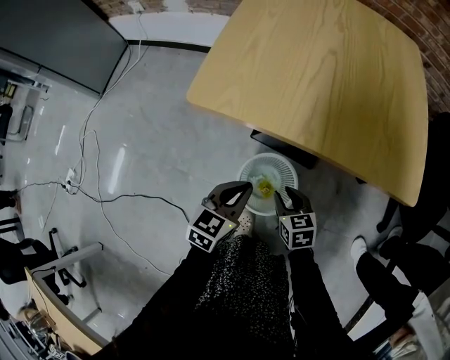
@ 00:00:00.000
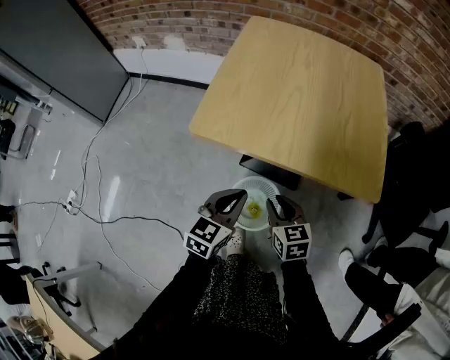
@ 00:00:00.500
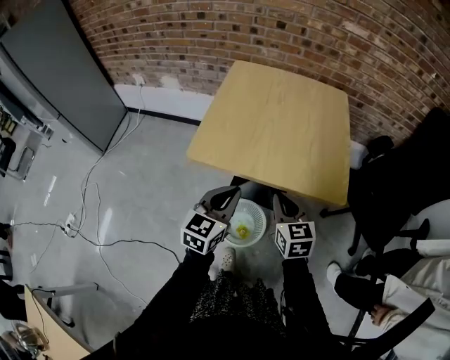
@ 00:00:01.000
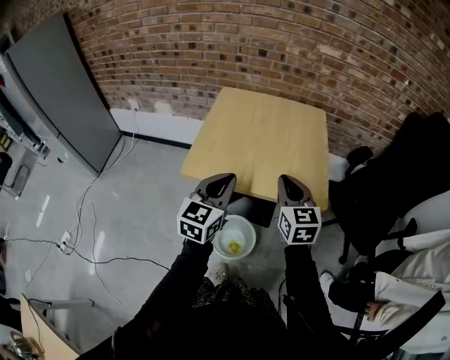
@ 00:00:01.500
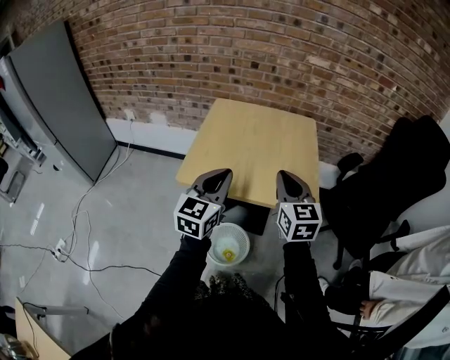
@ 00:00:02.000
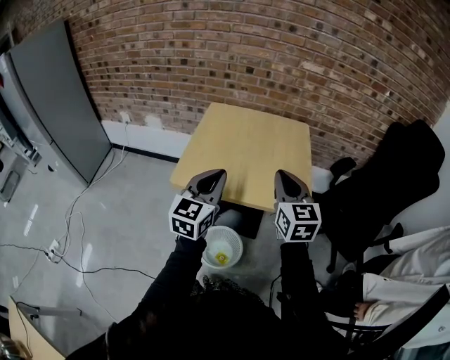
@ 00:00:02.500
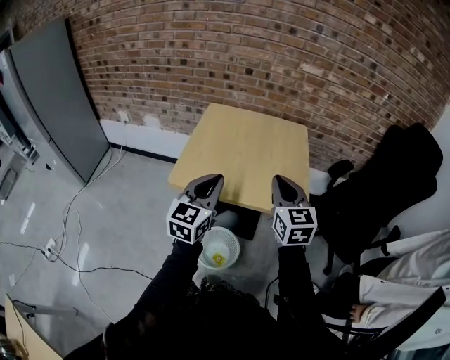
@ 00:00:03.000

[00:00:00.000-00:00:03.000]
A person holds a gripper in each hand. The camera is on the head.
00:00:00.000 to 00:00:01.500: Both grippers move upward, about 40 cm. The left gripper changes its angle by roughly 20 degrees; the right gripper angles its fingers upward, by about 30 degrees.
00:00:01.500 to 00:00:03.000: The right gripper is displaced upward by approximately 5 cm.

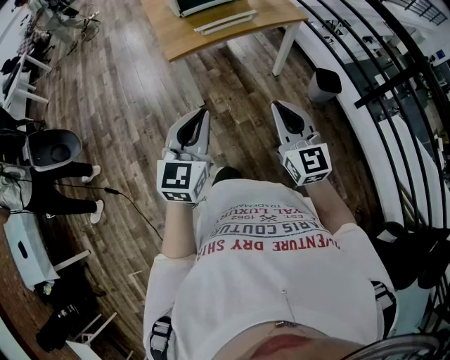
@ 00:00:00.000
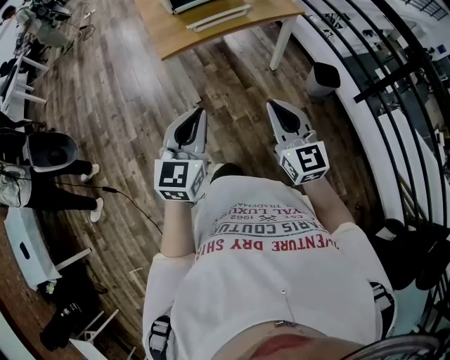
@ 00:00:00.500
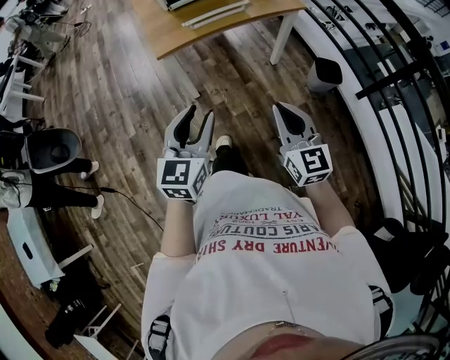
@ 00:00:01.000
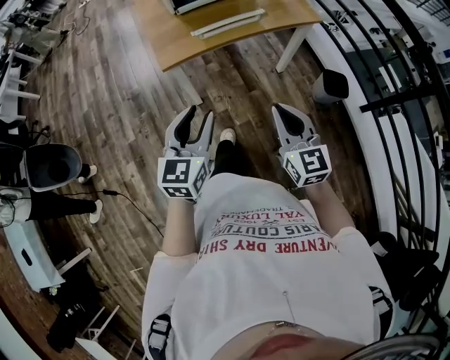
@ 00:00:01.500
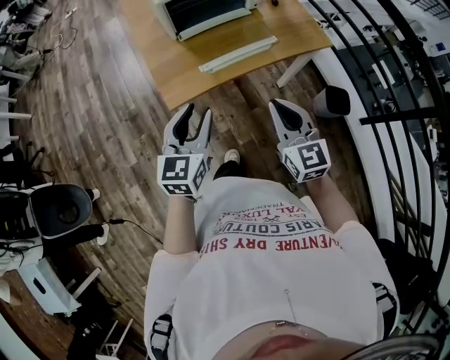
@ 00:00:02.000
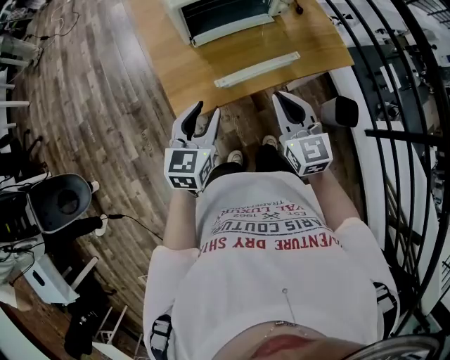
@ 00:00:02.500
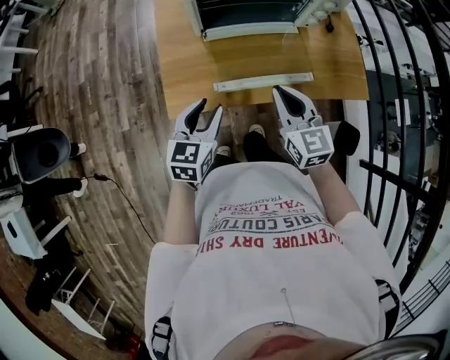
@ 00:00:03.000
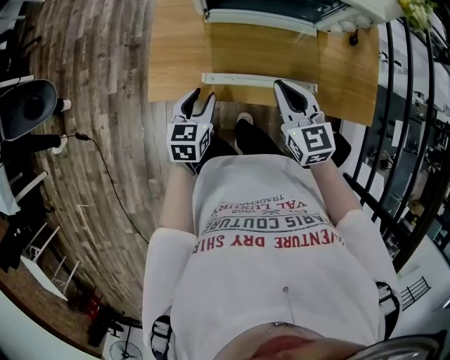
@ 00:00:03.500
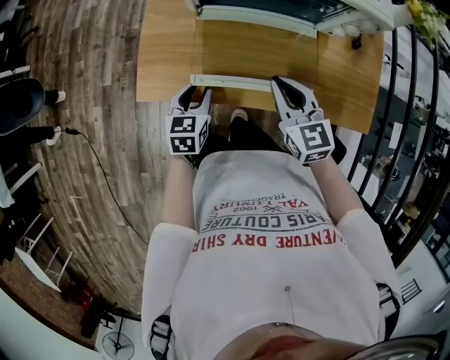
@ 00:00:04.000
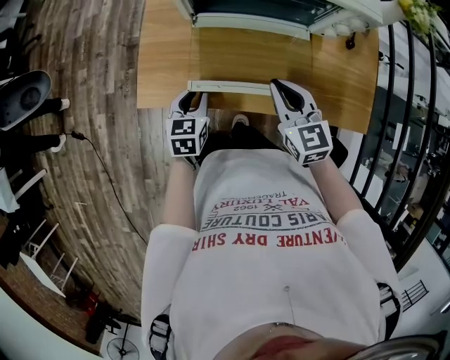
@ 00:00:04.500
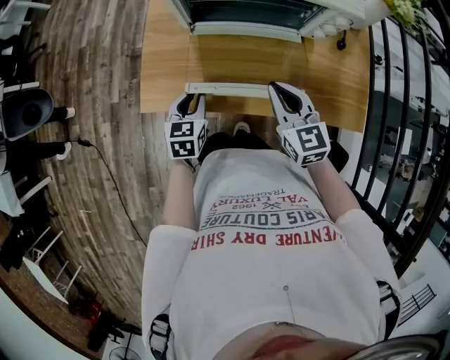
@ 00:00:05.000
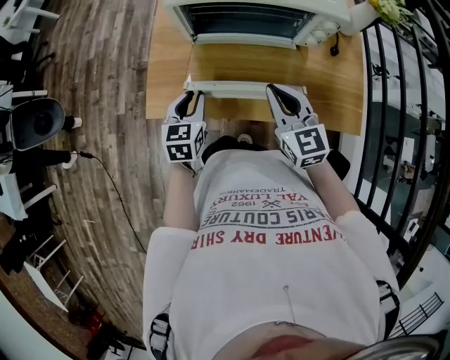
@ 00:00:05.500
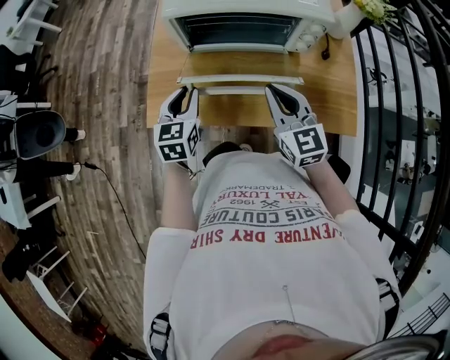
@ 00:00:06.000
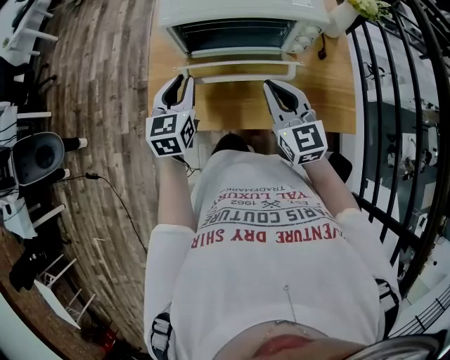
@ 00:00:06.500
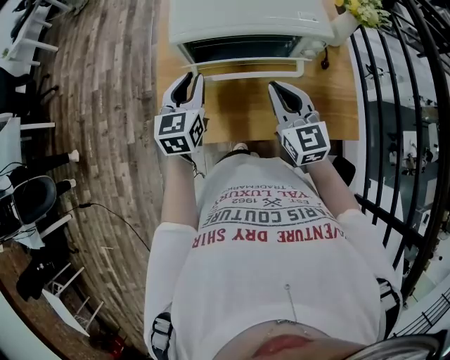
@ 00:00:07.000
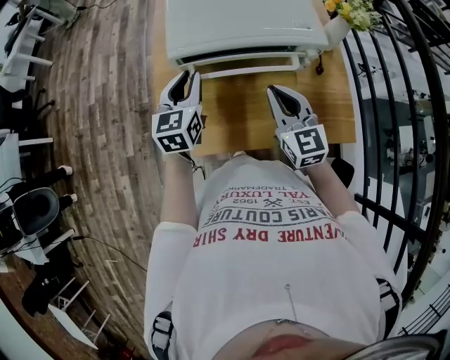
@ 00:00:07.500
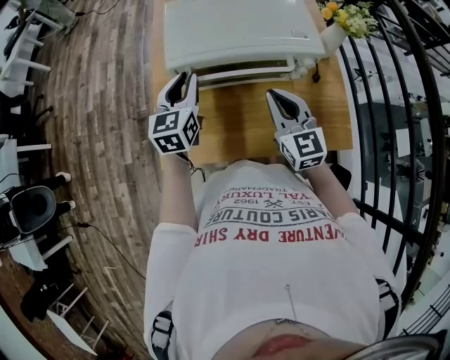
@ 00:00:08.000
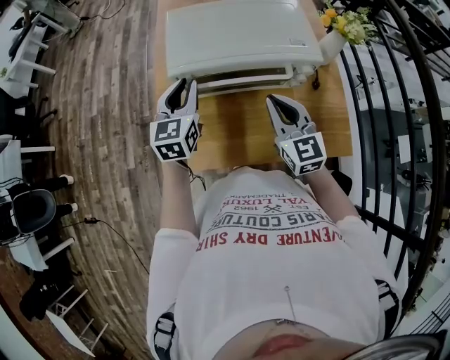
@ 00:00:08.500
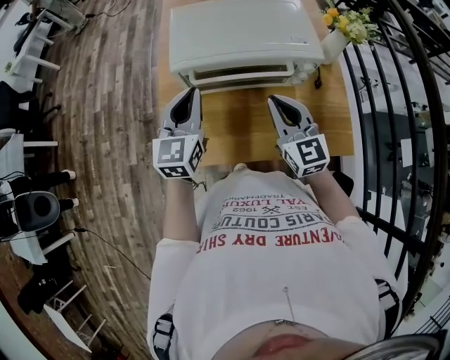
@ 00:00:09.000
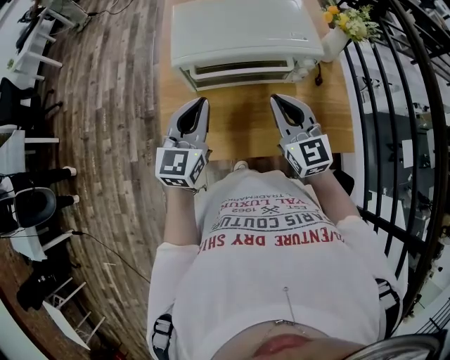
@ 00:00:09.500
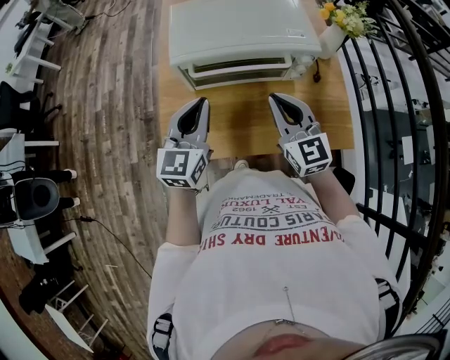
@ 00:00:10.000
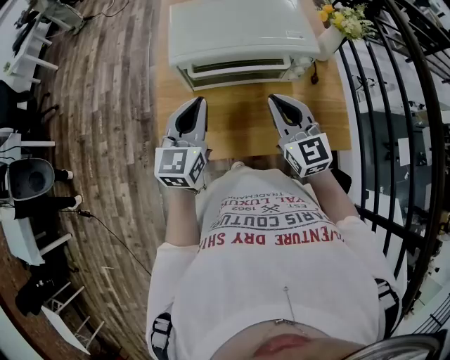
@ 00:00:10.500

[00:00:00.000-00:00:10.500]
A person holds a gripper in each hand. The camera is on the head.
00:00:00.000 to 00:00:02.000: Both grippers travel together forward, roughly 35 cm. The left gripper opens its fingers.
00:00:02.000 to 00:00:04.000: The left gripper shifts roughly 25 cm downward, and turns by about 40 degrees. Meanwhile the right gripper moves approximately 30 cm, and changes its angle by some 40 degrees.
00:00:04.000 to 00:00:06.500: The right gripper moves upward, about 10 cm. The left gripper is displaced upward and forward by approximately 20 cm.
00:00:06.500 to 00:00:08.500: The left gripper heads forward and upward, covering about 10 cm, while the right gripper goes roughly 5 cm forward.
00:00:08.500 to 00:00:10.500: The left gripper goes about 10 cm backward.

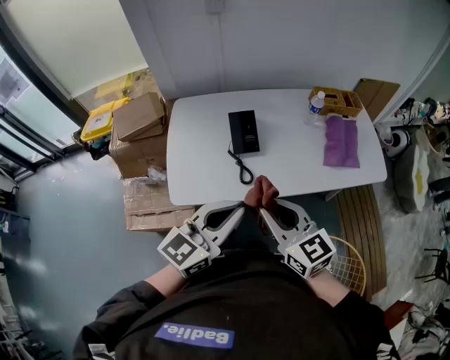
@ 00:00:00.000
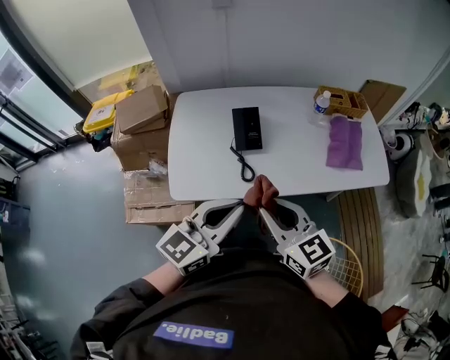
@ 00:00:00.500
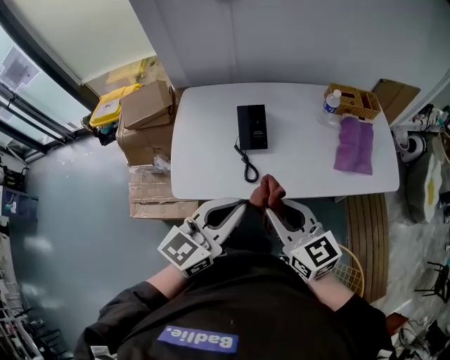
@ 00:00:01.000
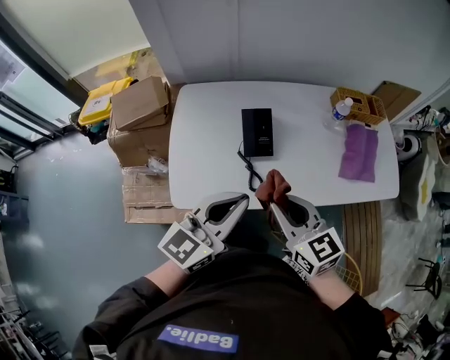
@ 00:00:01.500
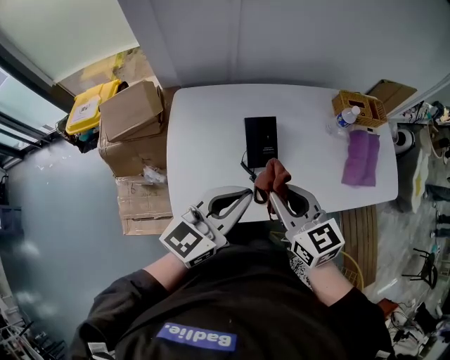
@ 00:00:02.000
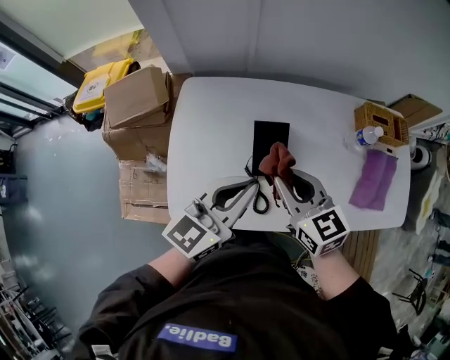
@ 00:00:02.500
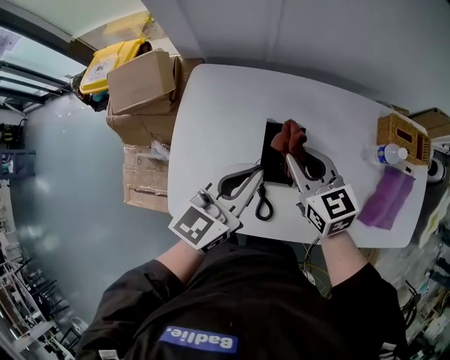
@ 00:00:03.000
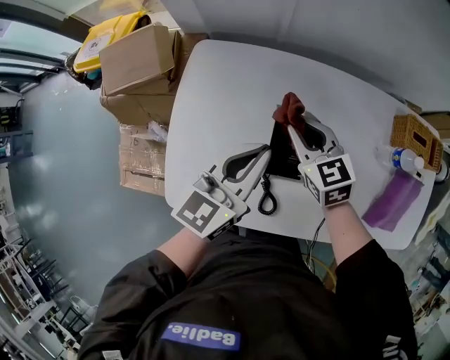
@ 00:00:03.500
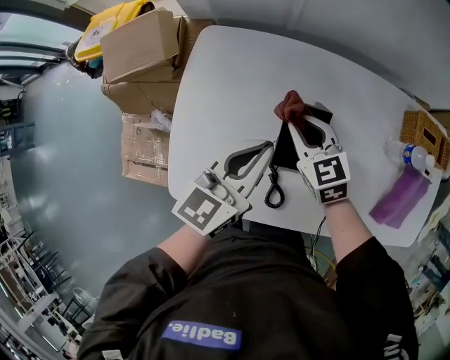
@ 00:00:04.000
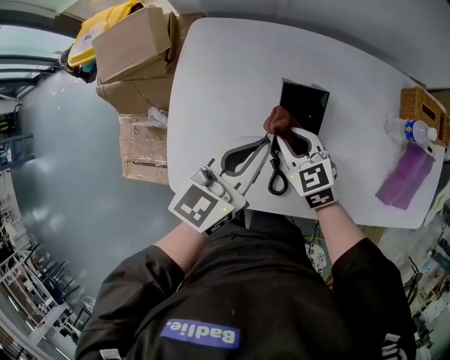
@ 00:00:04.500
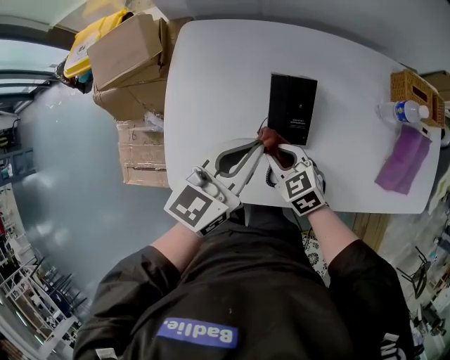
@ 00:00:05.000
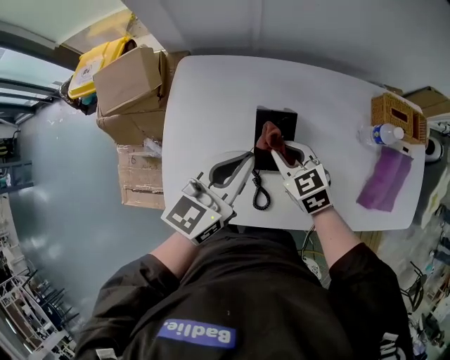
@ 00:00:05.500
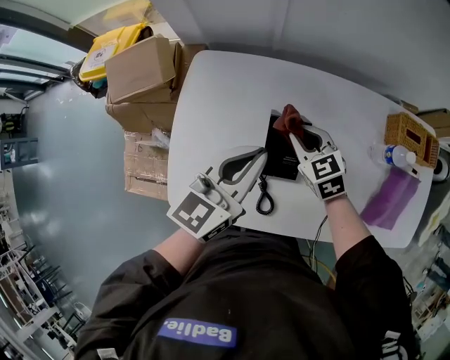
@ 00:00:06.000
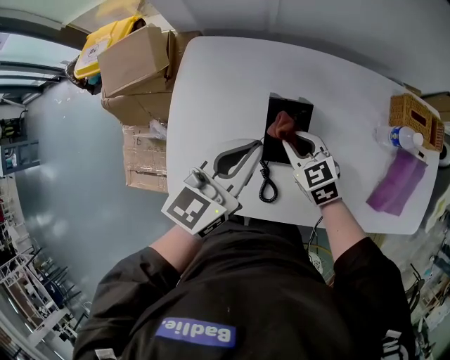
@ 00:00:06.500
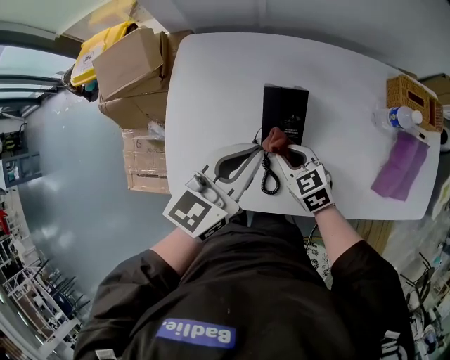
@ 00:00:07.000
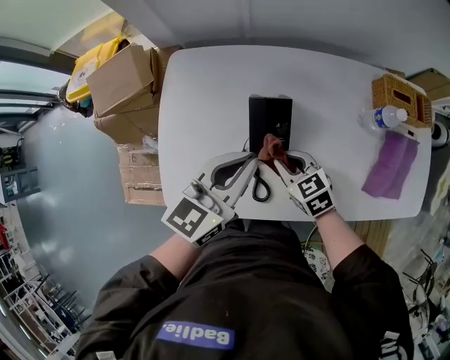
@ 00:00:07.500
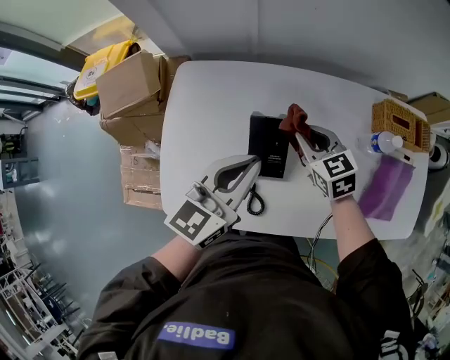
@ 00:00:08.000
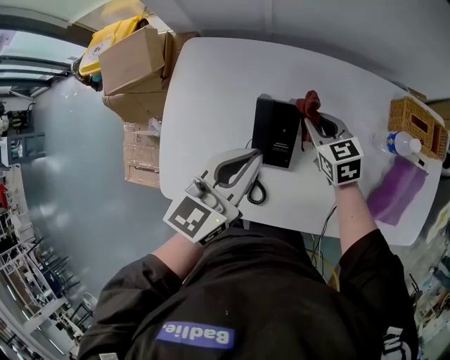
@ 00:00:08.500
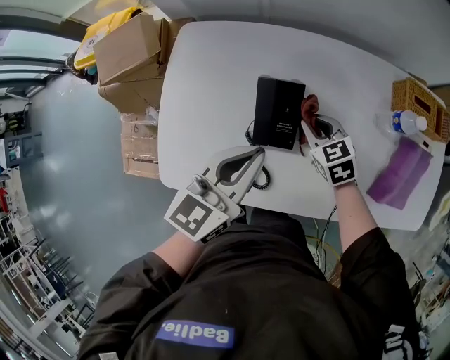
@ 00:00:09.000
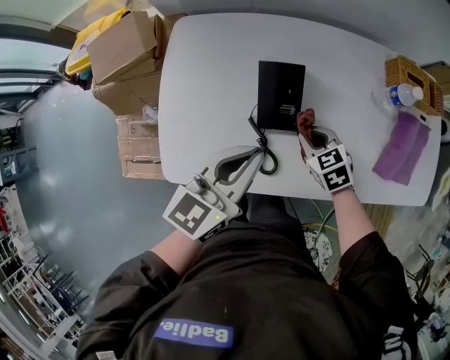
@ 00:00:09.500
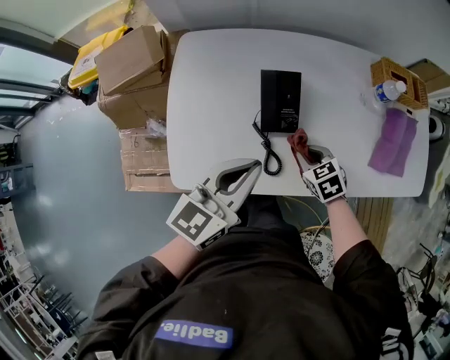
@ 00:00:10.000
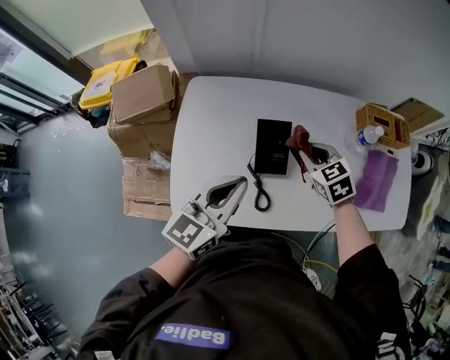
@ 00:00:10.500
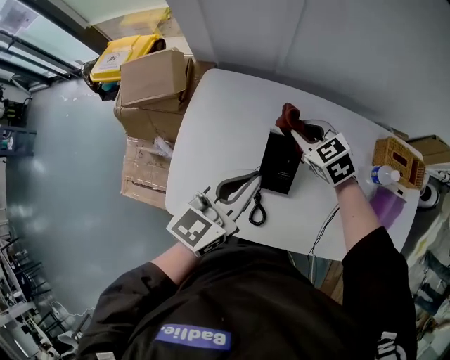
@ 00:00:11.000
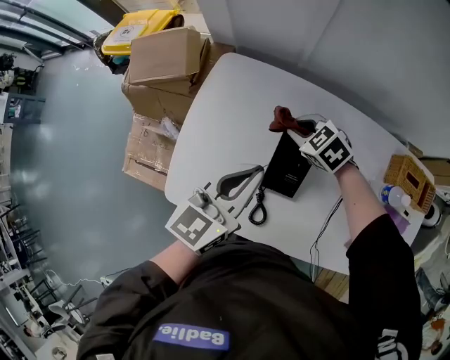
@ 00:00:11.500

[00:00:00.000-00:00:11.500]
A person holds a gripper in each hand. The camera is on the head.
00:00:00.000 to 00:00:02.000: The two grippers go roughly 15 cm forward.
00:00:02.000 to 00:00:04.000: The two grippers go some 25 cm forward and downward. The left gripper turns by approximately 30 degrees. The right gripper rotates some 30 degrees.
00:00:04.000 to 00:00:06.000: The right gripper goes backward and returns, about 15 cm each way; the left gripper changes place by about 5 cm.
00:00:06.000 to 00:00:07.500: The left gripper goes roughly 5 cm backward, while the right gripper is displaced backward by about 15 cm.
00:00:07.500 to 00:00:09.500: The left gripper is displaced backward by approximately 5 cm. Meanwhile the right gripper heads to the right, covering roughly 5 cm, and moves some 15 cm forward and comes back.
00:00:09.500 to 00:00:11.500: The right gripper moves approximately 25 cm, and changes its angle by roughly 30 degrees. The left gripper moves approximately 10 cm.

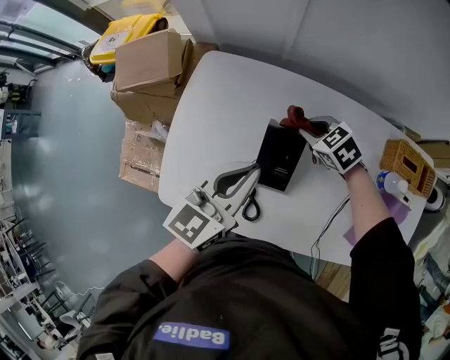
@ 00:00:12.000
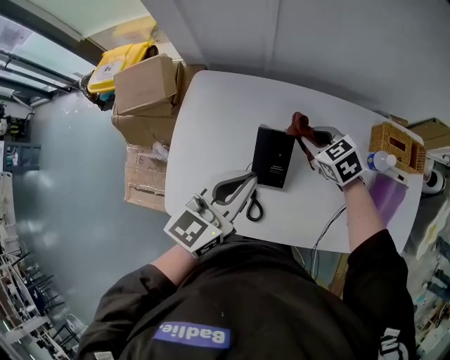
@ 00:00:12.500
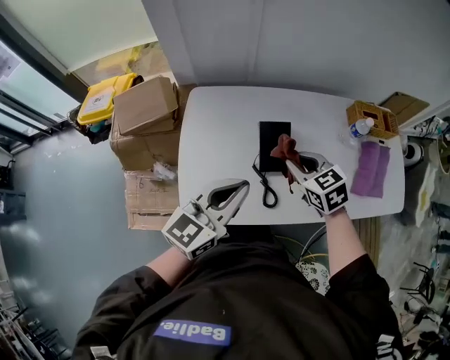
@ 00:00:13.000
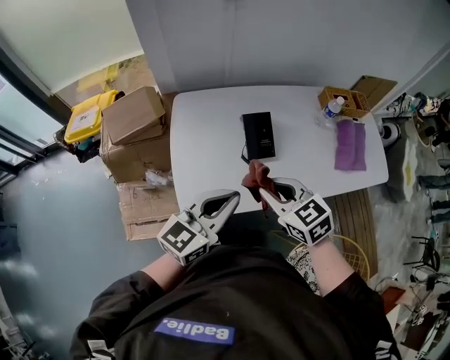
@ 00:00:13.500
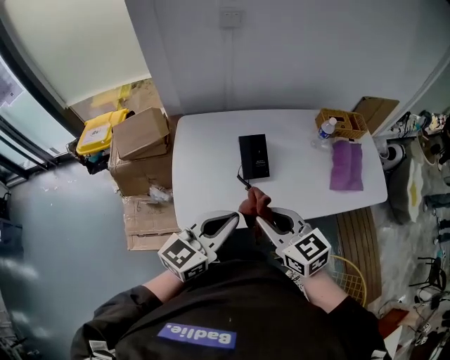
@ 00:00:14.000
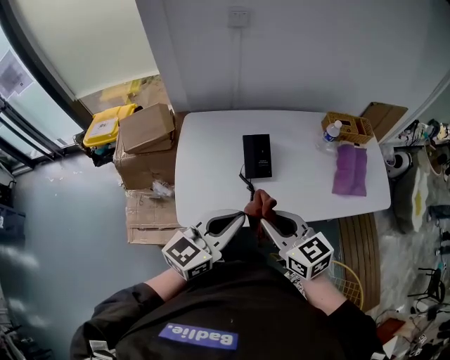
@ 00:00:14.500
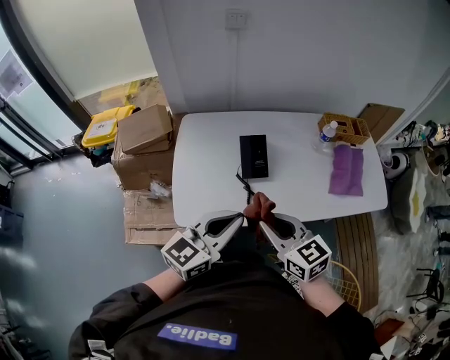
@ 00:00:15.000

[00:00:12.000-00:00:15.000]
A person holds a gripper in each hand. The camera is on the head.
00:00:12.000 to 00:00:13.500: The left gripper ends up roughly 25 cm from where it was, and changes its angle by approximately 30 degrees. The right gripper moves some 40 cm, and swivels some 40 degrees.
00:00:13.500 to 00:00:15.000: The left gripper shifts about 5 cm to the right. The right gripper goes some 10 cm backward and to the right.
